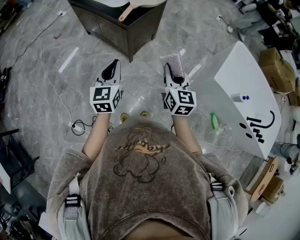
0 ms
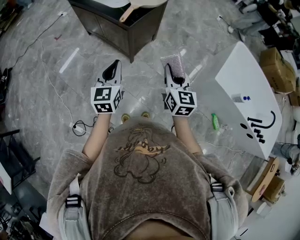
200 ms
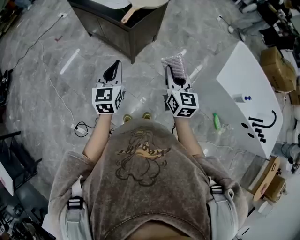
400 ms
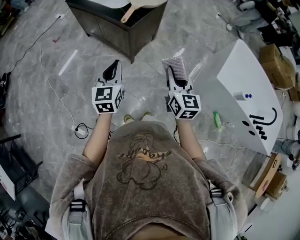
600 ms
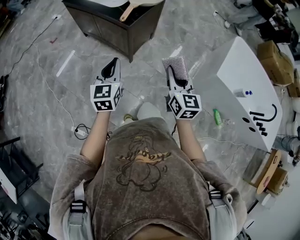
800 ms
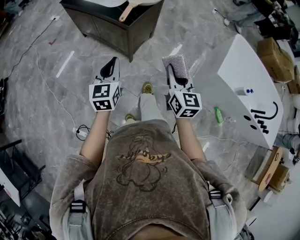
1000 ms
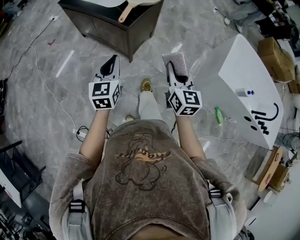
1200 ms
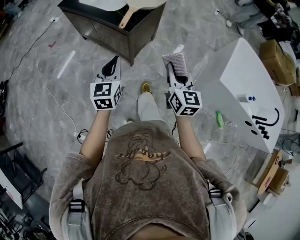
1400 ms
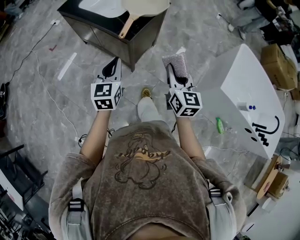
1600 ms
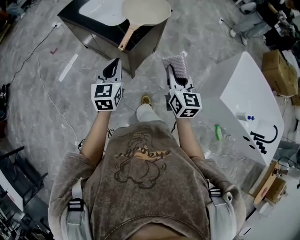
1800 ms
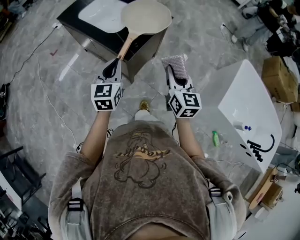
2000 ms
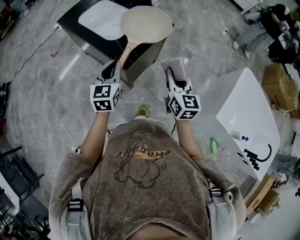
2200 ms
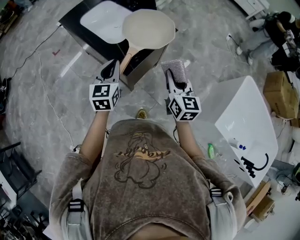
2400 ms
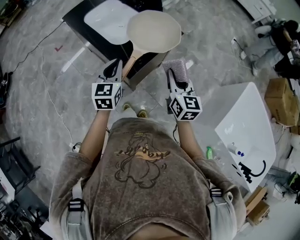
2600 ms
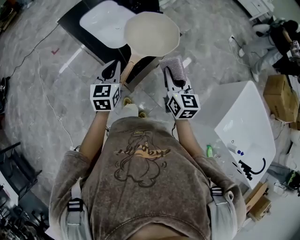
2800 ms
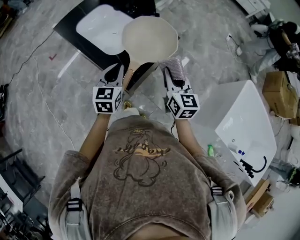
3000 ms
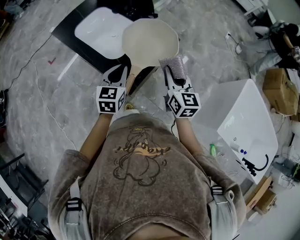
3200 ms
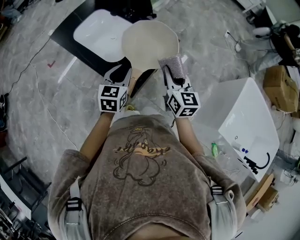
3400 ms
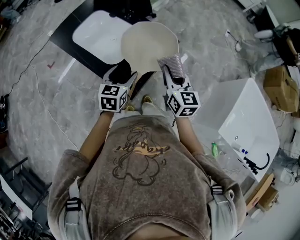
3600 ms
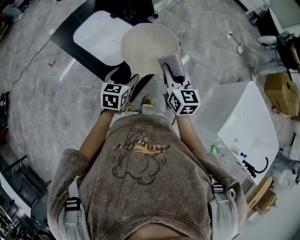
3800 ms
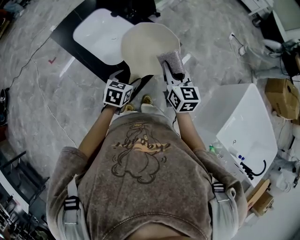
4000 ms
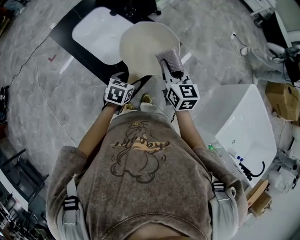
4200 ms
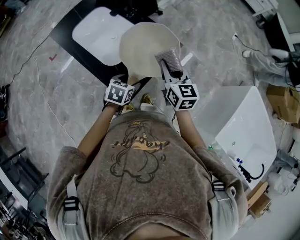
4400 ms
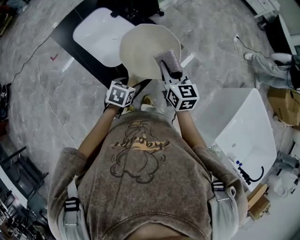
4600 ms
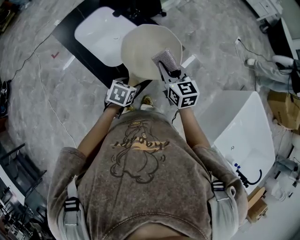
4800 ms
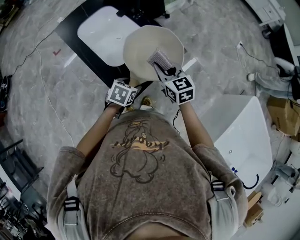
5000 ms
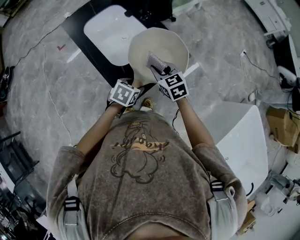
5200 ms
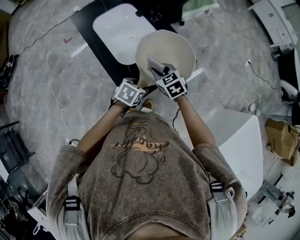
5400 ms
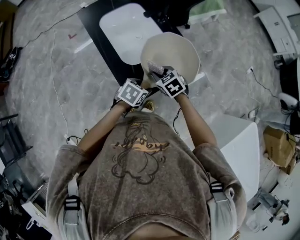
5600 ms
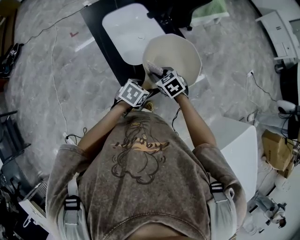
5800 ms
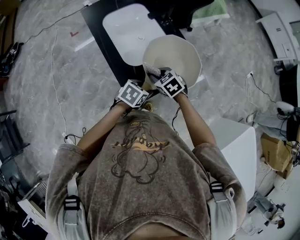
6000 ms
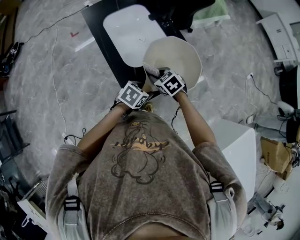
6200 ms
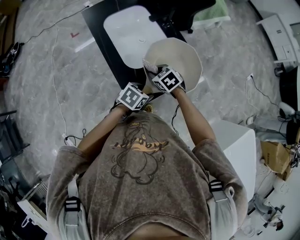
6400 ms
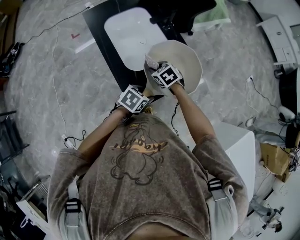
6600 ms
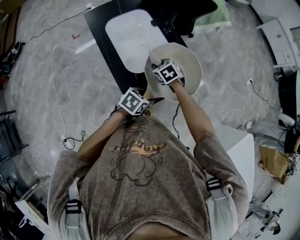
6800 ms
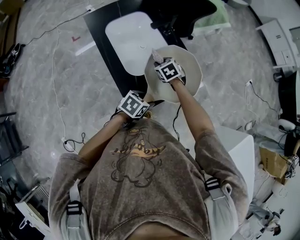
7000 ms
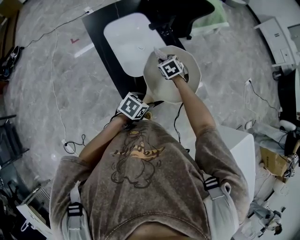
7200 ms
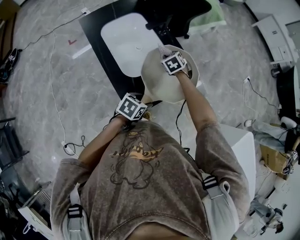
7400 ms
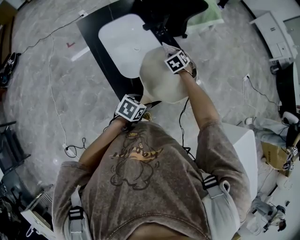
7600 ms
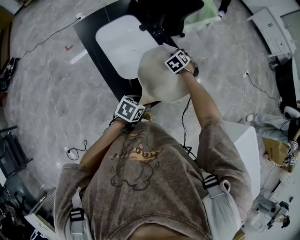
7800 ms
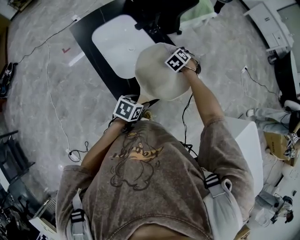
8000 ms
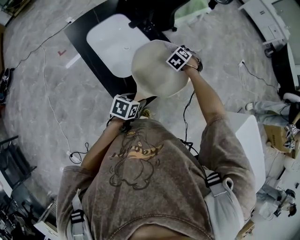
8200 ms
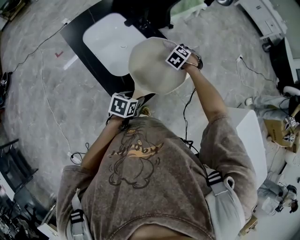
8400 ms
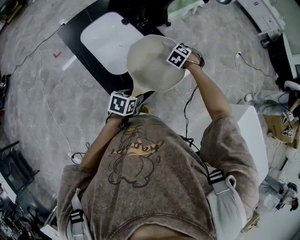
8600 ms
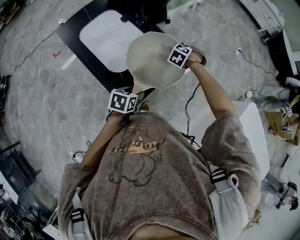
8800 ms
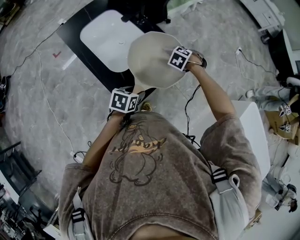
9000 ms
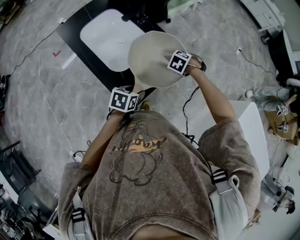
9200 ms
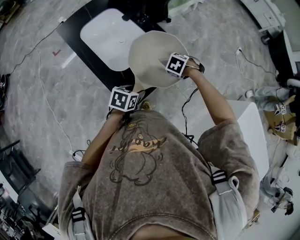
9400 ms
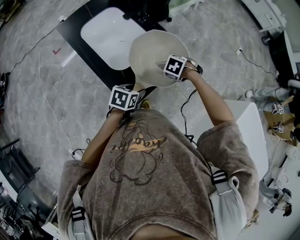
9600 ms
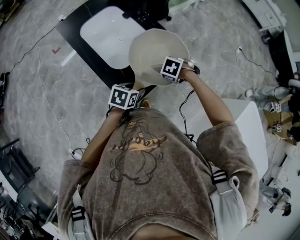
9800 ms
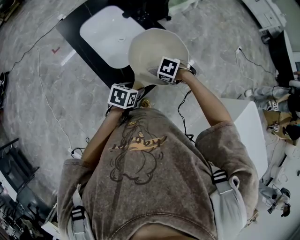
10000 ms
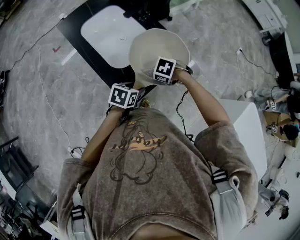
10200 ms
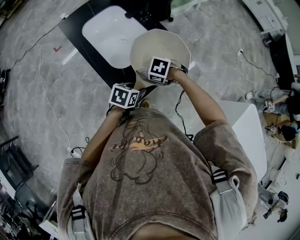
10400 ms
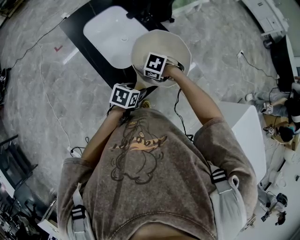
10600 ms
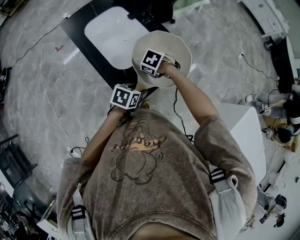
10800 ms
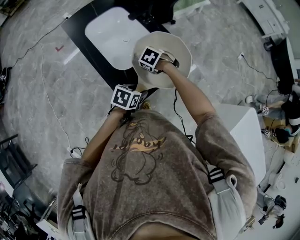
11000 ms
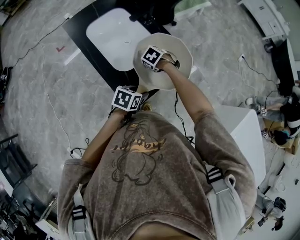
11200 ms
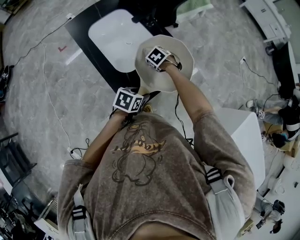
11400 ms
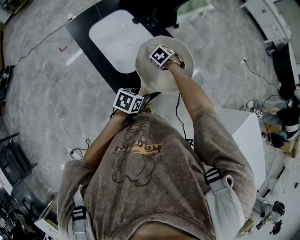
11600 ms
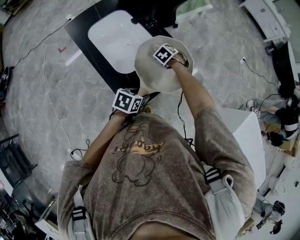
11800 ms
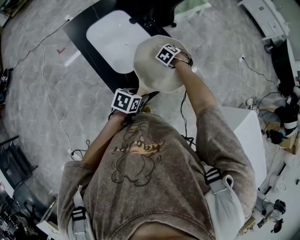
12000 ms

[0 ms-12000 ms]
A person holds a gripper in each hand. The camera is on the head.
0 ms to 1600 ms: Both grippers travel together forward, approximately 15 cm.
1600 ms to 3000 ms: Both grippers travel together forward, some 30 cm.
3000 ms to 4400 ms: The left gripper goes approximately 15 cm downward and to the right, angles its fingers downward, by roughly 30 degrees, and opens its fingers; the right gripper is displaced forward by roughly 10 cm.
4400 ms to 6000 ms: The right gripper travels downward and to the left by approximately 20 cm, and angles its fingers downward, by approximately 40 degrees.
6000 ms to 7600 ms: The right gripper changes place by roughly 20 cm, and turns by about 30 degrees.
7600 ms to 9000 ms: The right gripper changes place by about 15 cm, and swivels some 30 degrees.
9000 ms to 10400 ms: The right gripper ends up roughly 20 cm from where it was, and changes its angle by some 30 degrees.
10400 ms to 12000 ms: The right gripper moves about 20 cm, and rotates roughly 30 degrees.

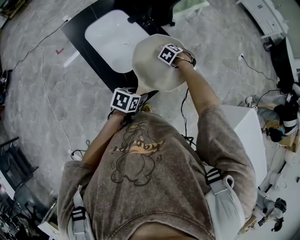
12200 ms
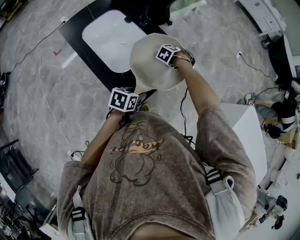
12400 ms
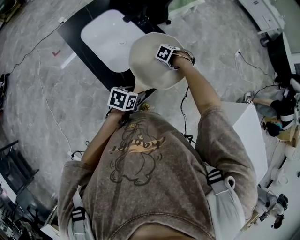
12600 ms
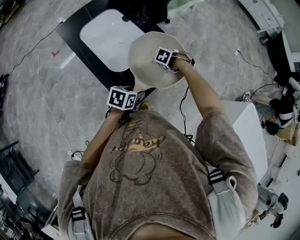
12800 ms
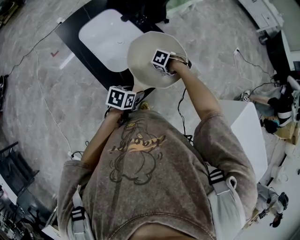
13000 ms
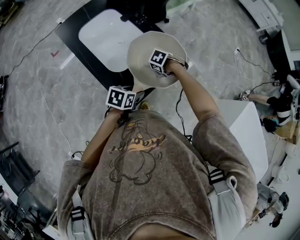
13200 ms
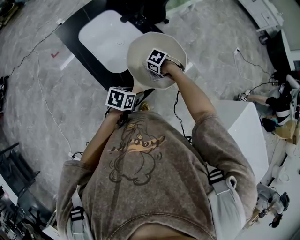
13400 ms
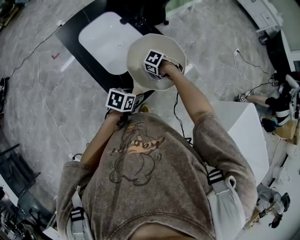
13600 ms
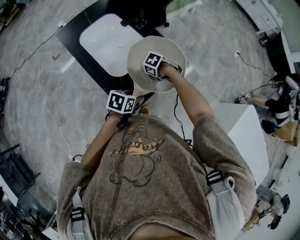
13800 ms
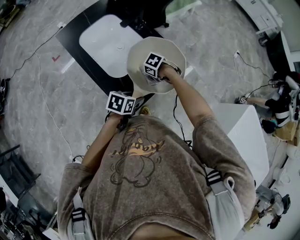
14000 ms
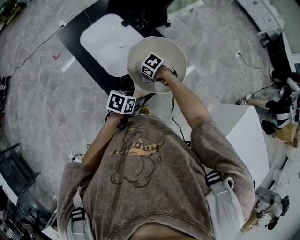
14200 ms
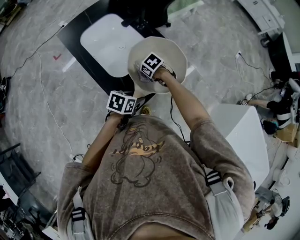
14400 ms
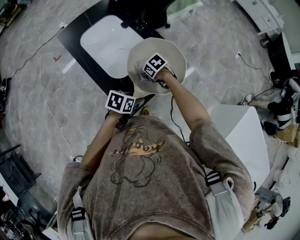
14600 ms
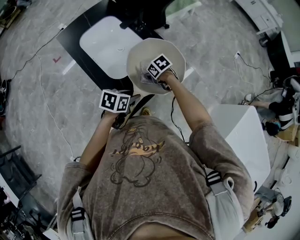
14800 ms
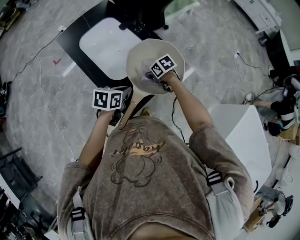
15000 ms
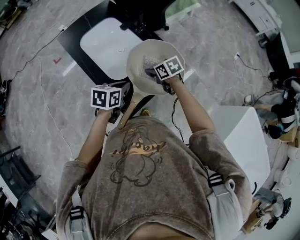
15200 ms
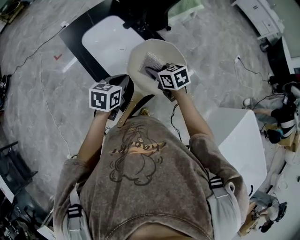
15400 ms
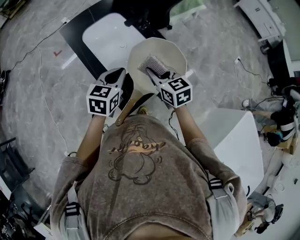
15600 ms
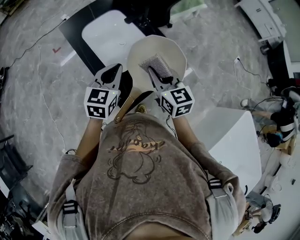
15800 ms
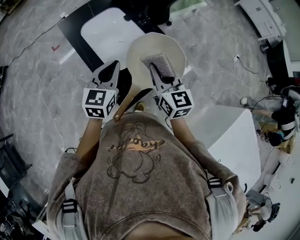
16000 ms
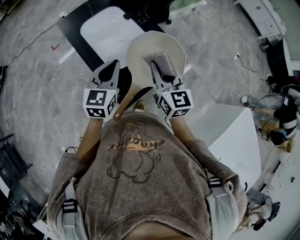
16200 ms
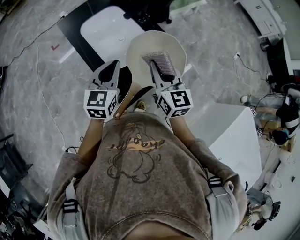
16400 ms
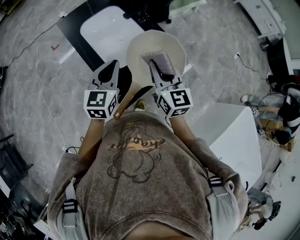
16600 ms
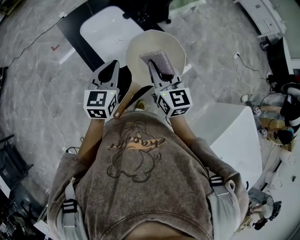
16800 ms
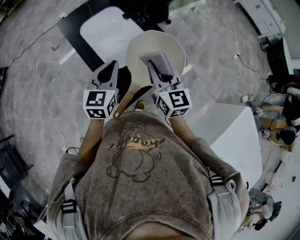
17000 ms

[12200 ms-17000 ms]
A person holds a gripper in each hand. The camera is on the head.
12200 ms to 13800 ms: The right gripper changes place by about 15 cm, and rotates approximately 30 degrees.
13800 ms to 15400 ms: The grippers both shift upward by some 15 cm. The left gripper turns by some 20 degrees, and closes its fingers; the right gripper points its fingers about 40 degrees further upward.
15400 ms to 17000 ms: The left gripper goes some 5 cm upward, and rotates some 30 degrees, while the right gripper shifts roughly 15 cm upward and backward, and turns by approximately 40 degrees.

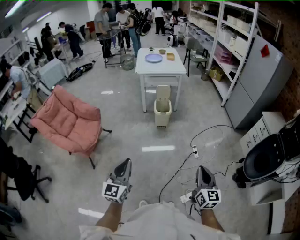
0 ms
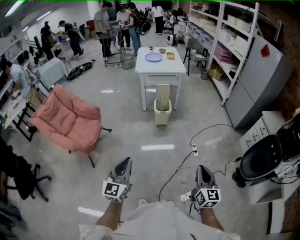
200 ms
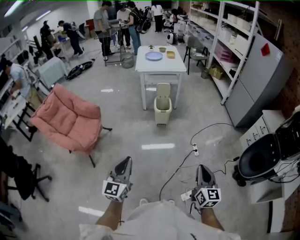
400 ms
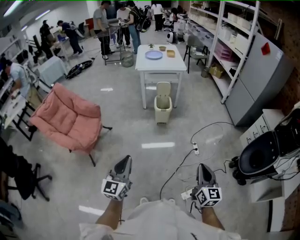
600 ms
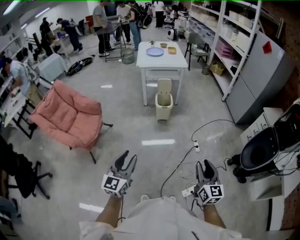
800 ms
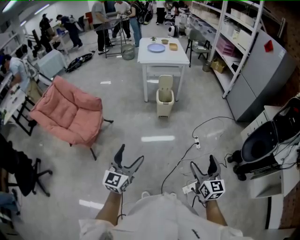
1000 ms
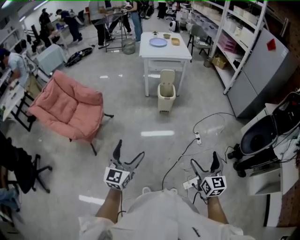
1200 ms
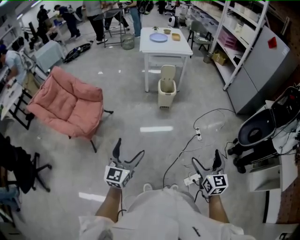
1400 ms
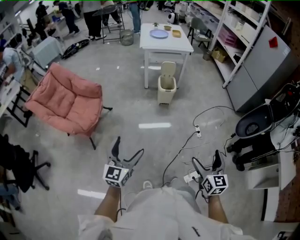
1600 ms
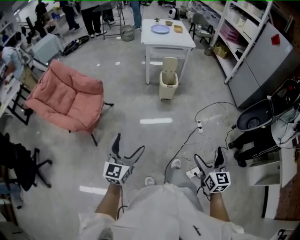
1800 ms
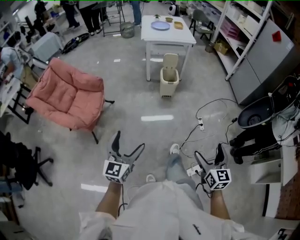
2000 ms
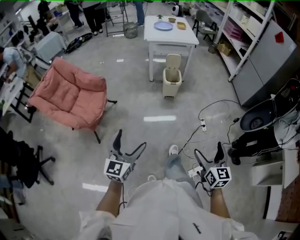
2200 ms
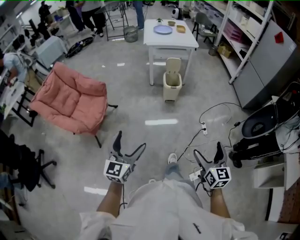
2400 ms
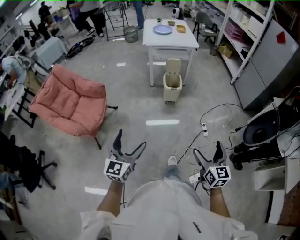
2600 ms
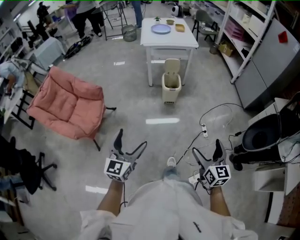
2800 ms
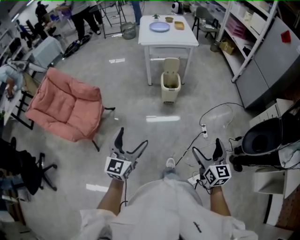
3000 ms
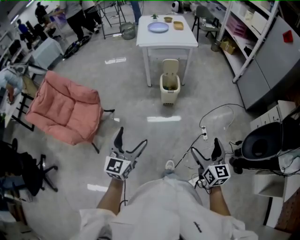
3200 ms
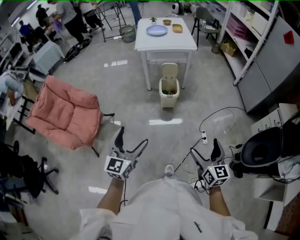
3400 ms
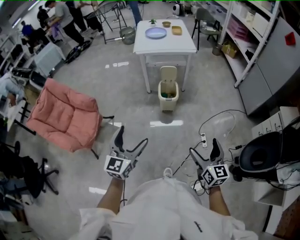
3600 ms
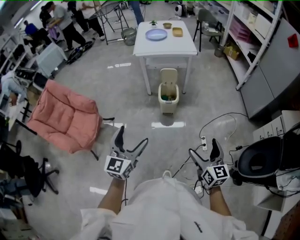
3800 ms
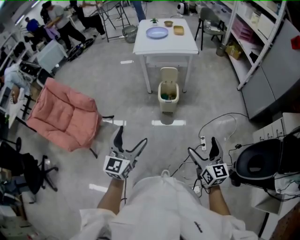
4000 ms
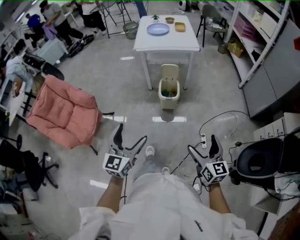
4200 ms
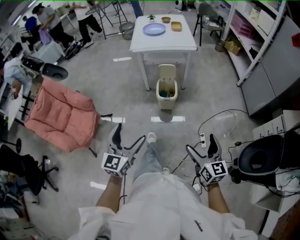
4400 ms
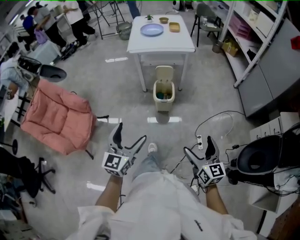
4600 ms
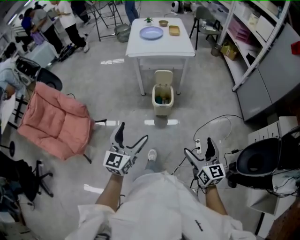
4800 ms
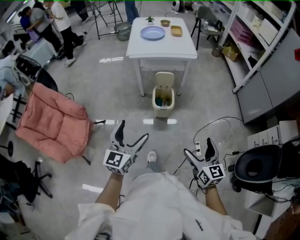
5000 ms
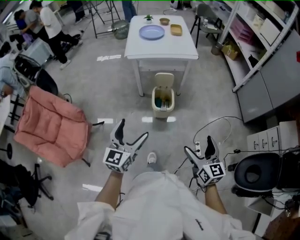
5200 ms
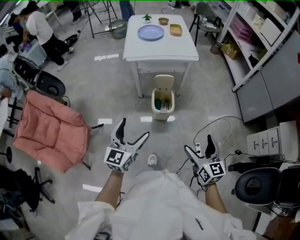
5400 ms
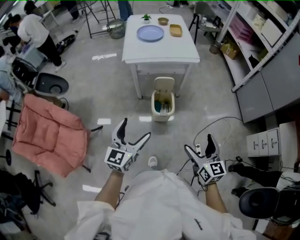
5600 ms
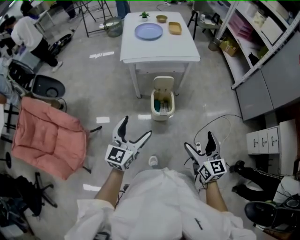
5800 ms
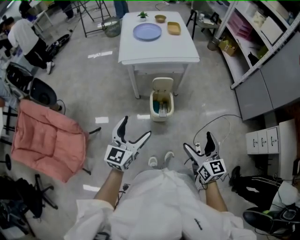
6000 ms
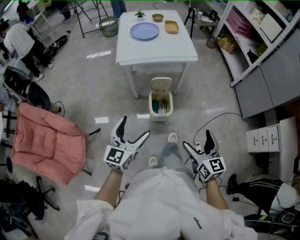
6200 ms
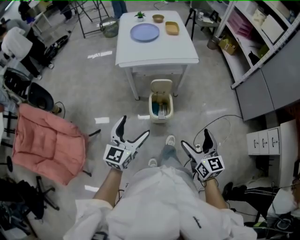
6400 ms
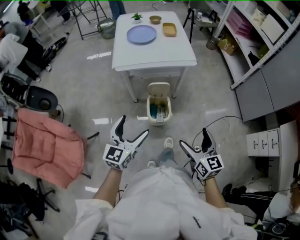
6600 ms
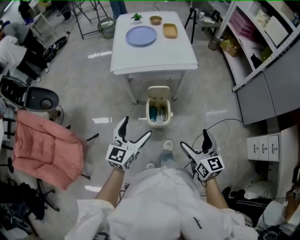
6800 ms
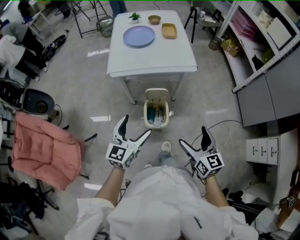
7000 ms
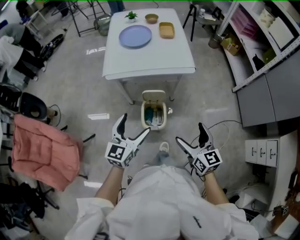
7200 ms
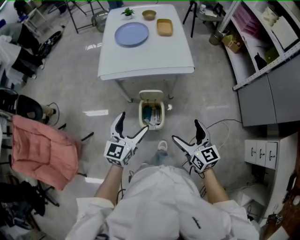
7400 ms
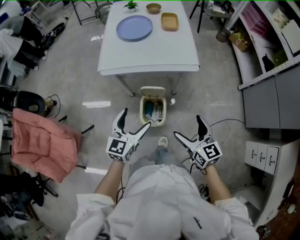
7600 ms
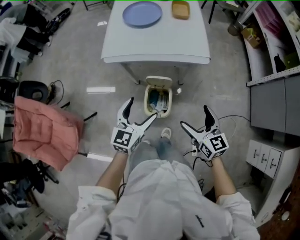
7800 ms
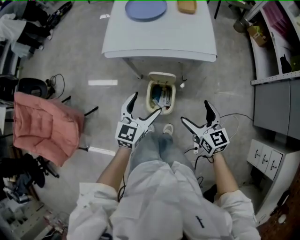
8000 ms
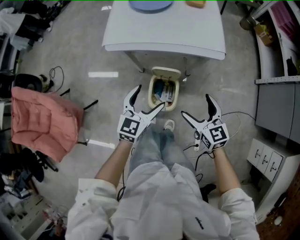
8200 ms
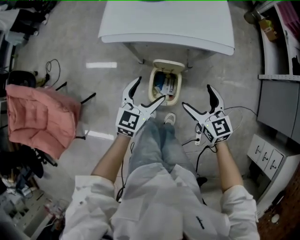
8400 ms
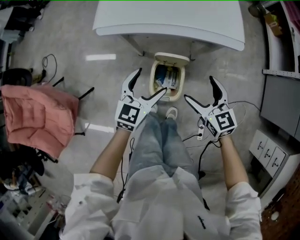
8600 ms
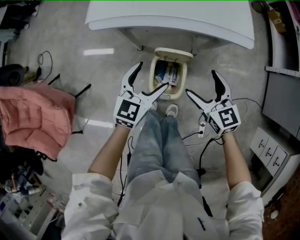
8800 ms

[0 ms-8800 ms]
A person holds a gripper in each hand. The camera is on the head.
0 ms to 1400 ms: The left gripper heads to the left and downward, covering about 15 cm, and opens, while the right gripper goes some 10 cm to the left, and opens up.
1400 ms to 3000 ms: The grippers both shift forward by roughly 20 cm.
3000 ms to 4400 ms: Both grippers travel together forward and to the right, approximately 25 cm.
4400 ms to 5800 ms: The two grippers go some 30 cm forward.
5800 ms to 7400 ms: The grippers both shift forward by some 30 cm.
7400 ms to 8800 ms: Both grippers travel together downward and forward, roughly 30 cm.
